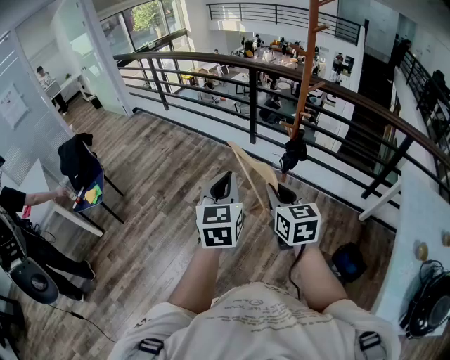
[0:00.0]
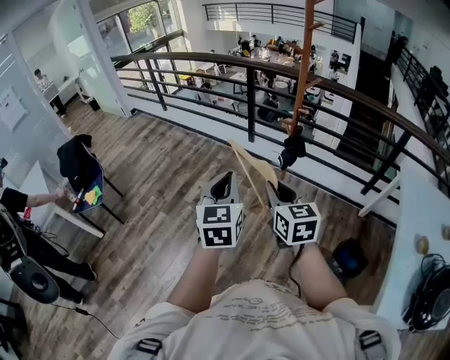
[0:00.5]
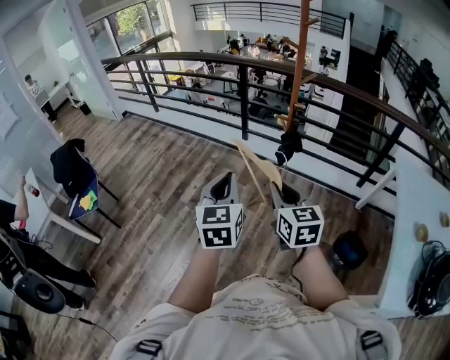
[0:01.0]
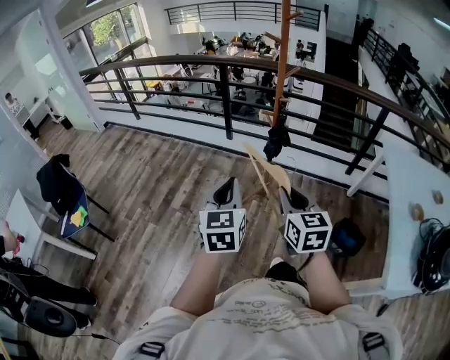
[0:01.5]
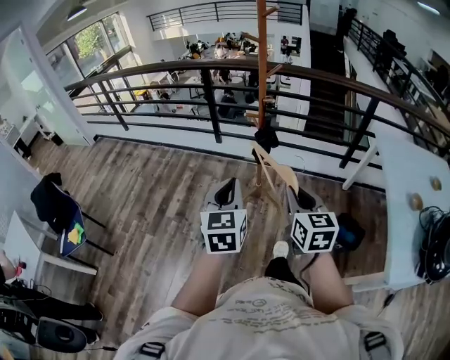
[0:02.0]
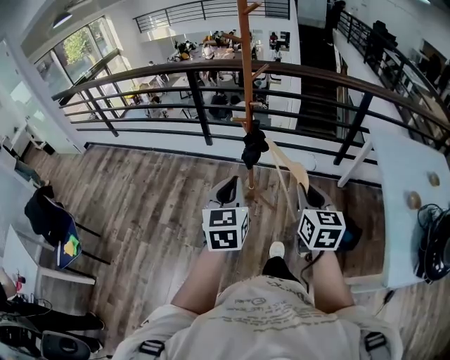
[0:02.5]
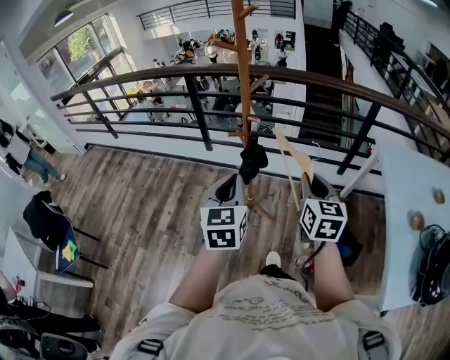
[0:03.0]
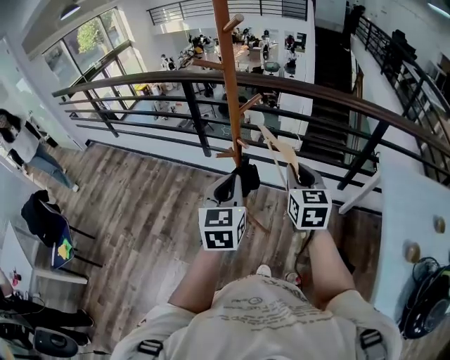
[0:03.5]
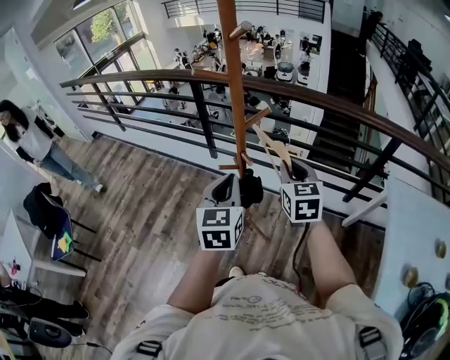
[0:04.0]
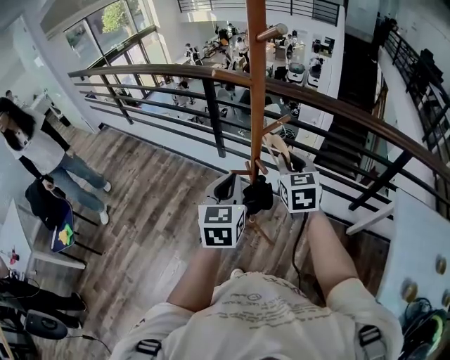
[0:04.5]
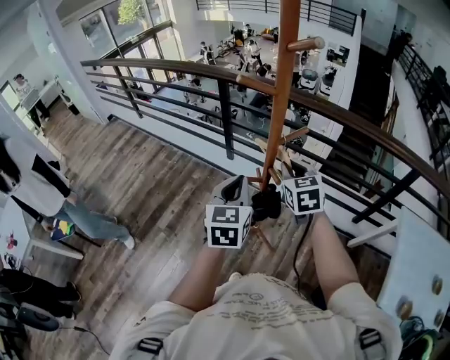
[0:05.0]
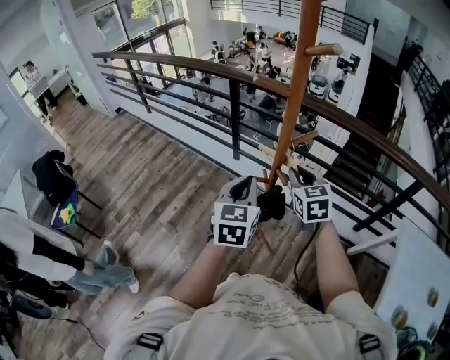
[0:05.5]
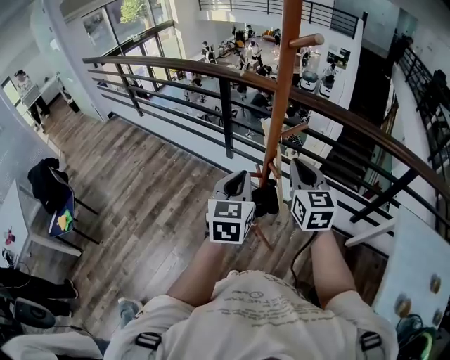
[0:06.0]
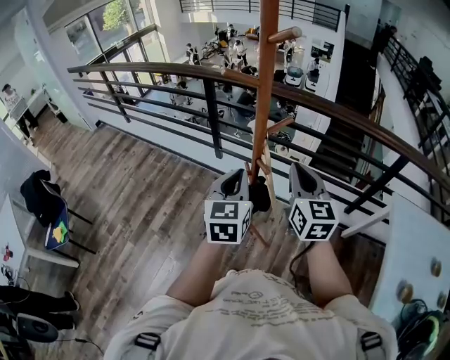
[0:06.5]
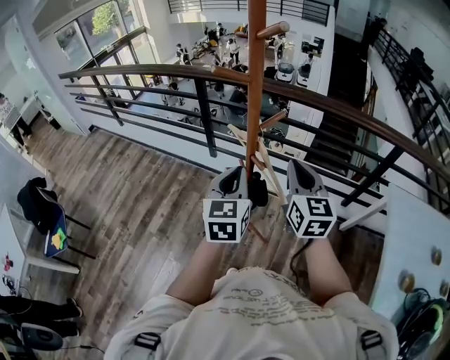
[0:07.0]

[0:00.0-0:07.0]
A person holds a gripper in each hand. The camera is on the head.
0:00.0 to 0:02.0: The left gripper travels to the right by about 5 cm; the right gripper travels to the right by some 10 cm, and turns by approximately 20 degrees.
0:02.0 to 0:03.5: The left gripper shifts about 30 cm forward and to the right. Meanwhile the right gripper is displaced forward by about 35 cm.
0:03.5 to 0:05.0: The right gripper goes roughly 20 cm forward and to the left, and changes its angle by approximately 20 degrees. Meanwhile the left gripper heads forward and to the left, covering approximately 15 cm.
0:05.0 to 0:07.0: The right gripper is displaced backward, upward and to the right by approximately 15 cm, and changes its angle by roughly 30 degrees. The left gripper shifts by approximately 5 cm.

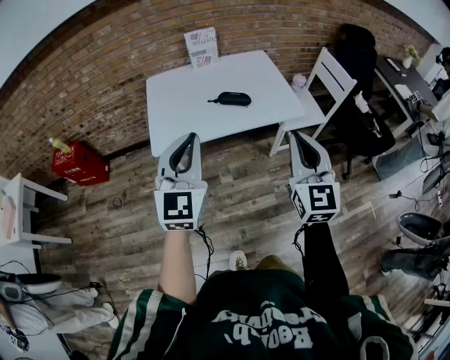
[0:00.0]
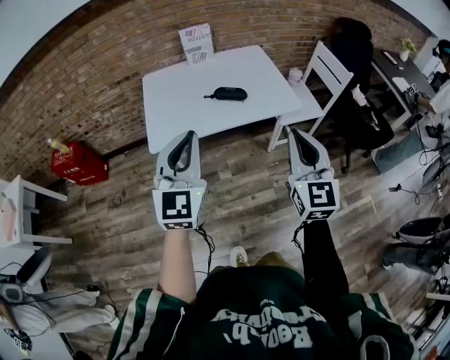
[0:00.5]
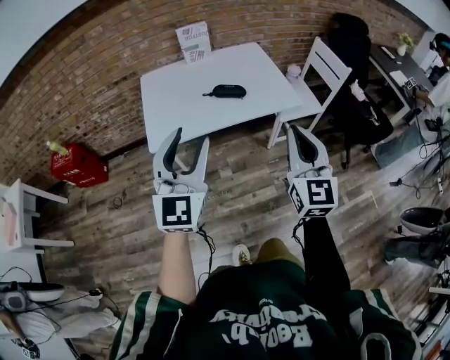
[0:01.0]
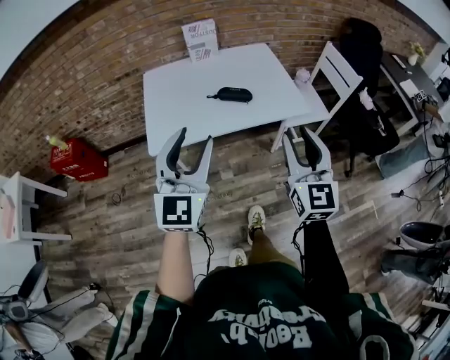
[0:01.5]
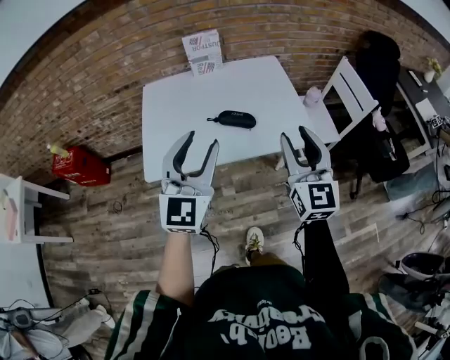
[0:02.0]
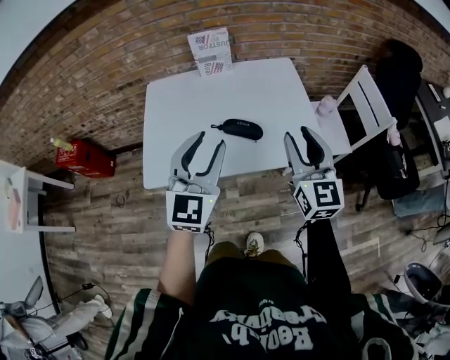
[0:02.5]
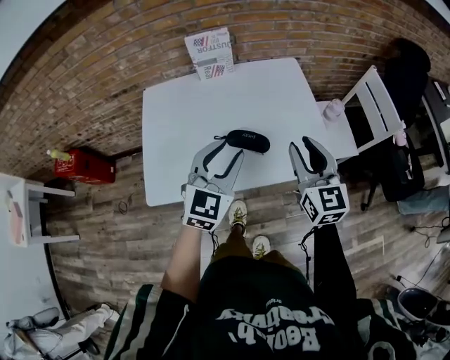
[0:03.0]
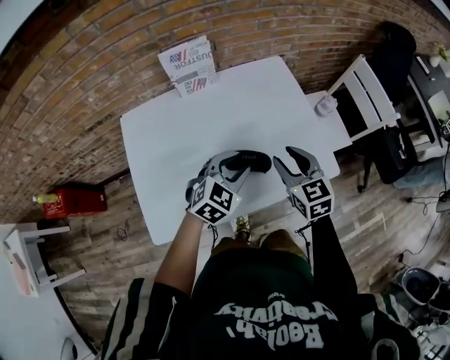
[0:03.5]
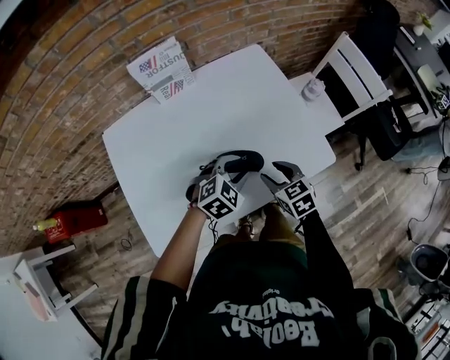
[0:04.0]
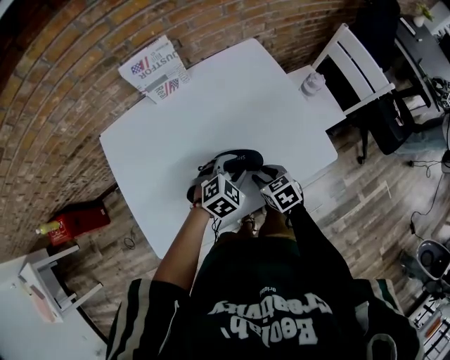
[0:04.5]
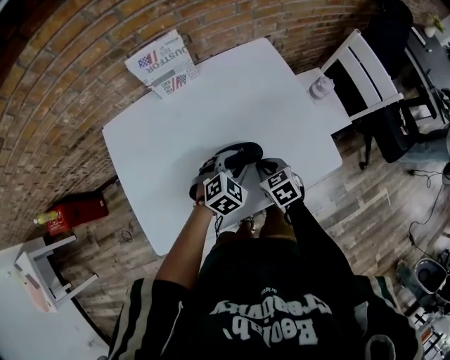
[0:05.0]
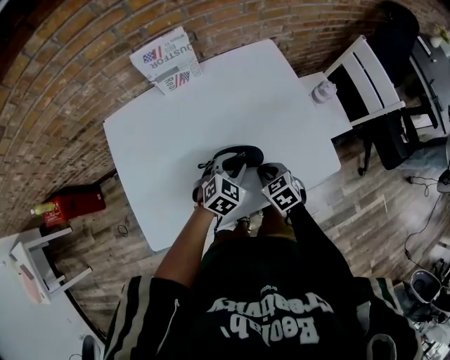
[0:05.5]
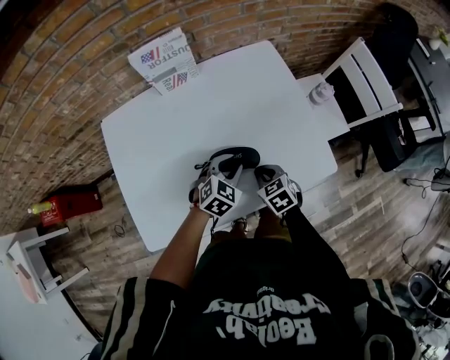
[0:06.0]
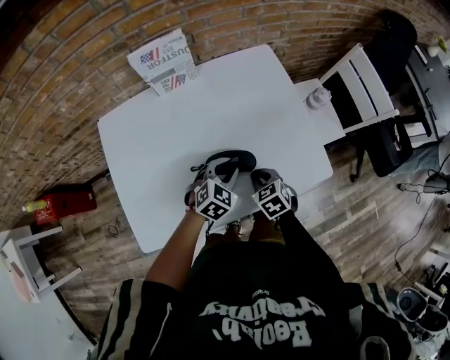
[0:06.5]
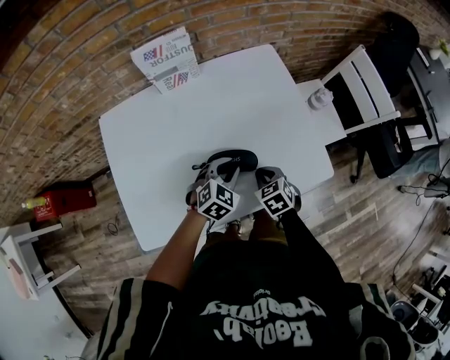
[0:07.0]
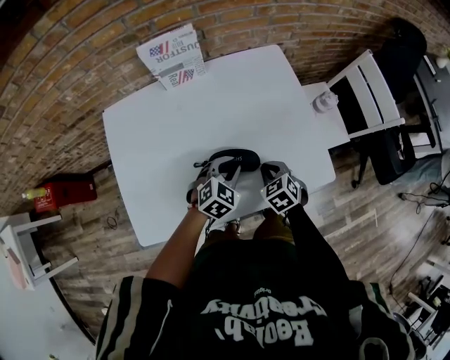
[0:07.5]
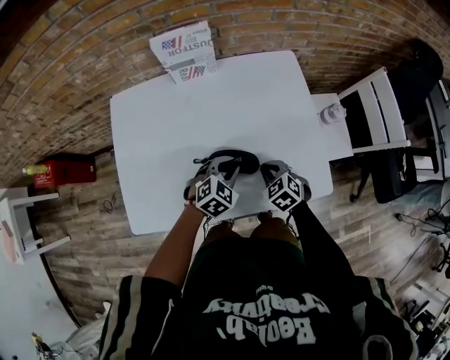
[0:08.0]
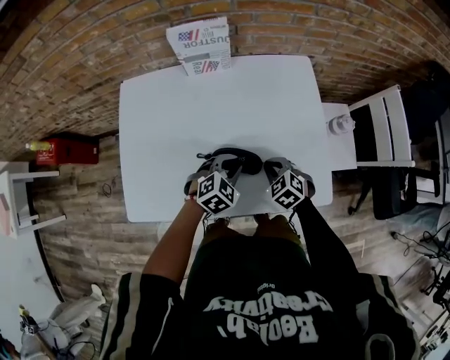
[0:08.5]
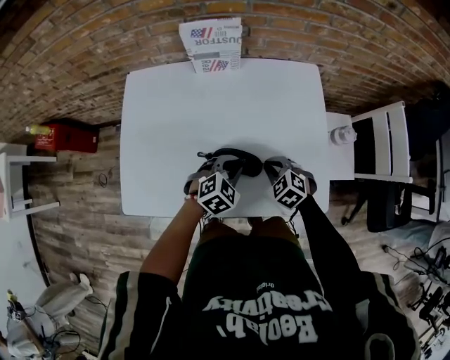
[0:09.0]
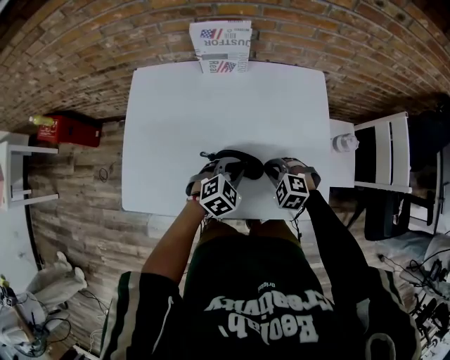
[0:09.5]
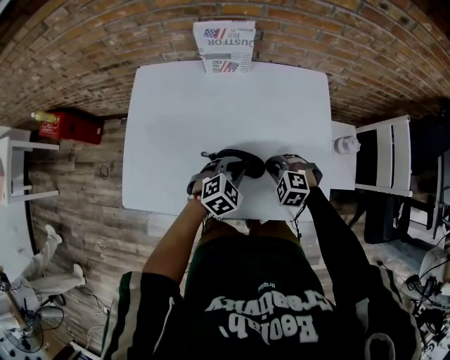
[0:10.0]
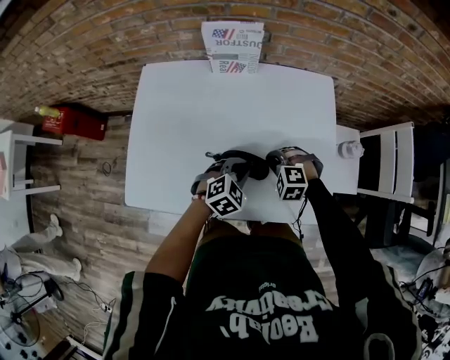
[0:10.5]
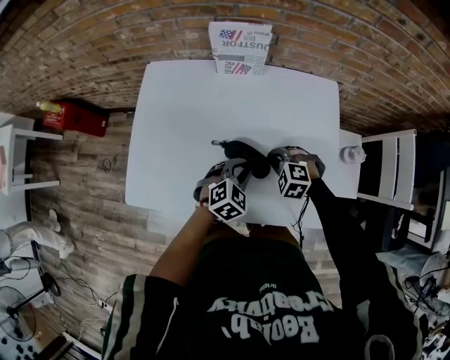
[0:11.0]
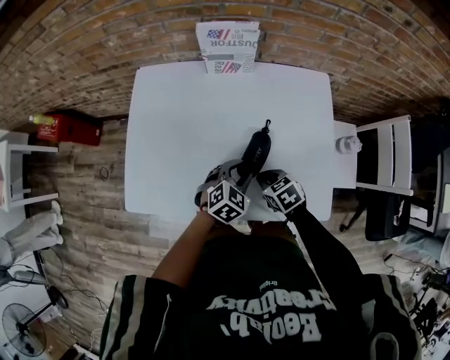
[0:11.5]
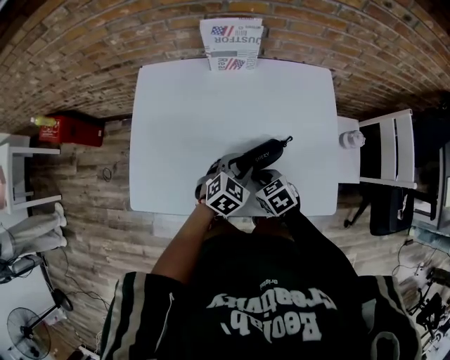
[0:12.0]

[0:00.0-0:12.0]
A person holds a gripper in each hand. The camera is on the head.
0:00.0 to 0:02.0: Both grippers travel together forward, approximately 20 cm. The left gripper opens. Meanwhile the right gripper opens its fingers.
0:02.0 to 0:04.0: The grippers both shift downward and forward by some 40 cm. The left gripper angles its fingers downward, by about 50 degrees; the right gripper tips its fingers downward by roughly 50 degrees.
0:04.0 to 0:06.0: The right gripper travels downward by some 5 cm, and closes. Meanwhile the left gripper ends up some 5 cm from where it was.
0:06.0 to 0:08.0: The right gripper turns by some 20 degrees.
0:08.0 to 0:10.0: The right gripper rolls counterclockwise, seen from behind, by approximately 40 degrees.
0:10.0 to 0:12.0: The right gripper moves to the left, approximately 10 cm, and rotates around the line of its fingers by roughly 50 degrees, clockwise from behind.

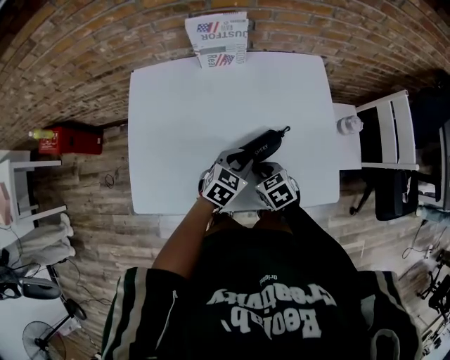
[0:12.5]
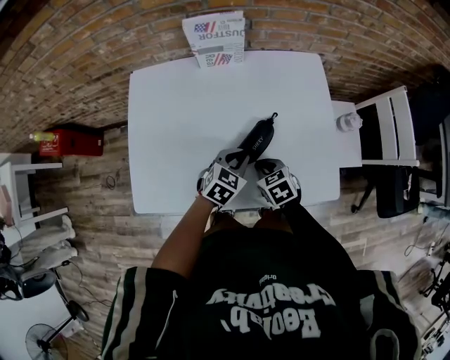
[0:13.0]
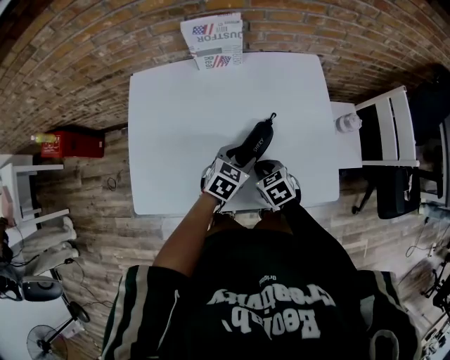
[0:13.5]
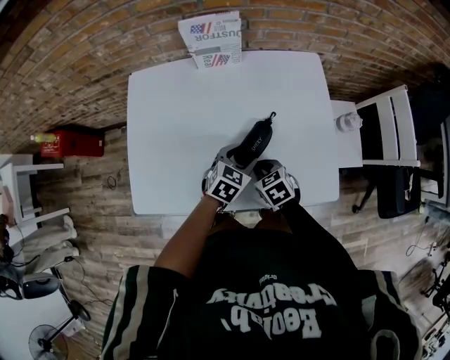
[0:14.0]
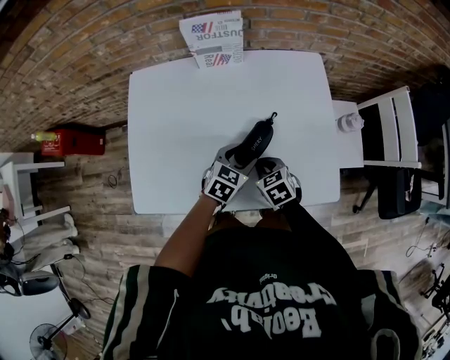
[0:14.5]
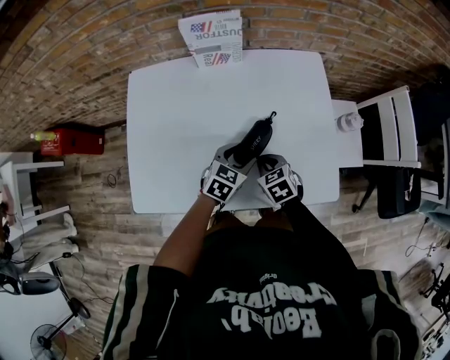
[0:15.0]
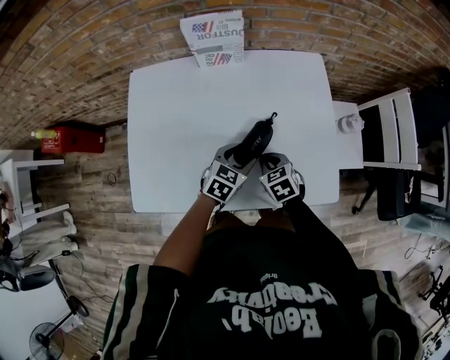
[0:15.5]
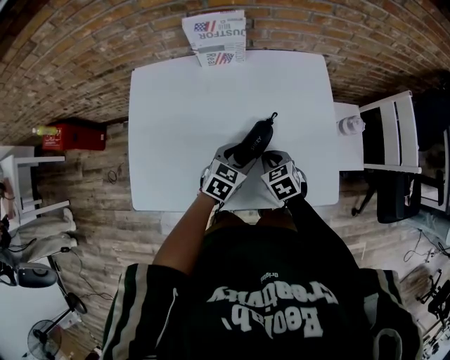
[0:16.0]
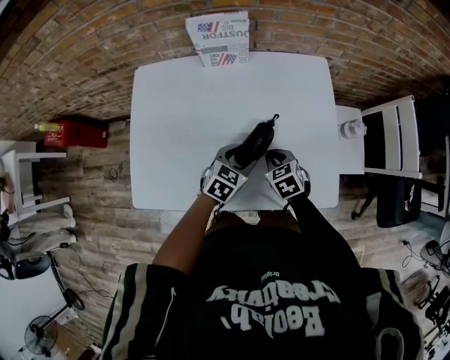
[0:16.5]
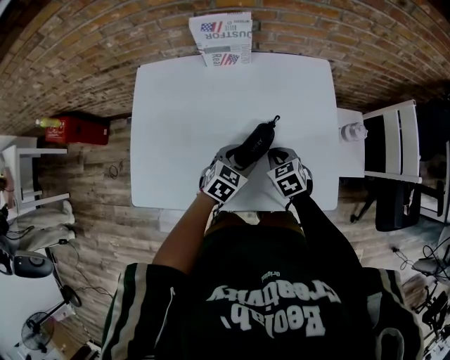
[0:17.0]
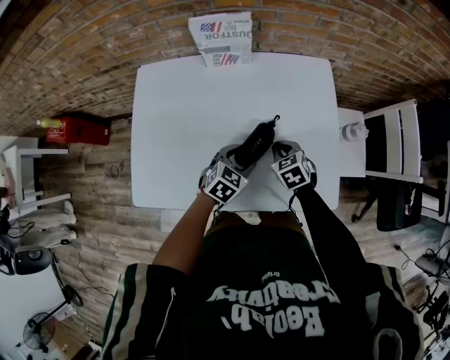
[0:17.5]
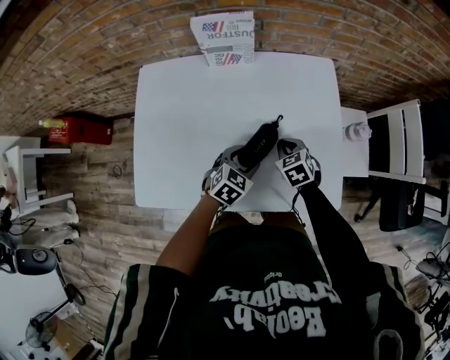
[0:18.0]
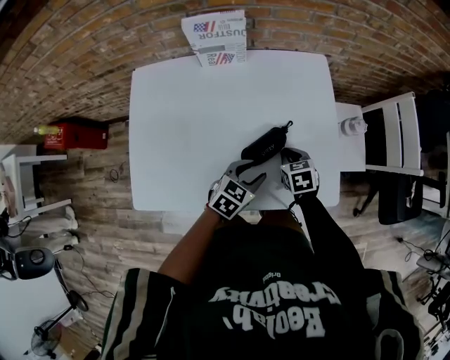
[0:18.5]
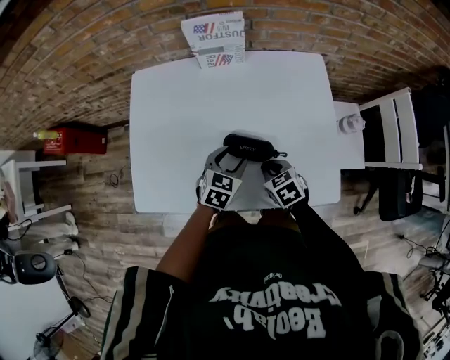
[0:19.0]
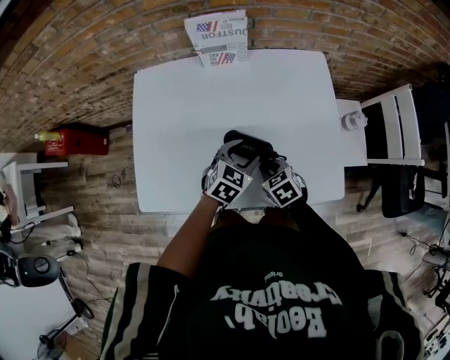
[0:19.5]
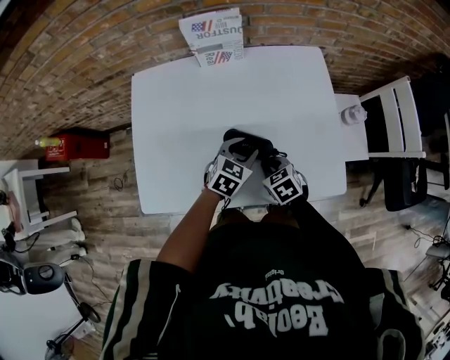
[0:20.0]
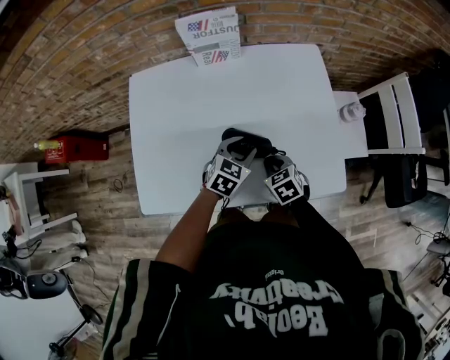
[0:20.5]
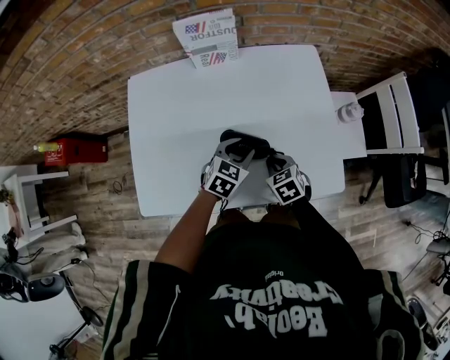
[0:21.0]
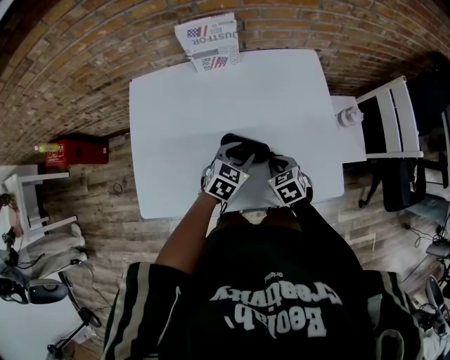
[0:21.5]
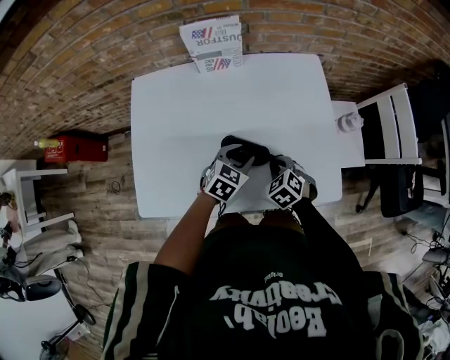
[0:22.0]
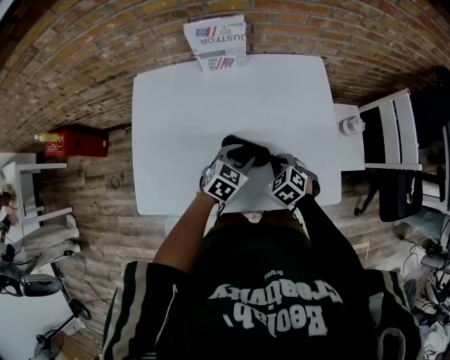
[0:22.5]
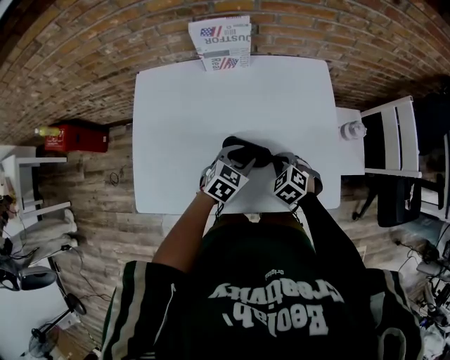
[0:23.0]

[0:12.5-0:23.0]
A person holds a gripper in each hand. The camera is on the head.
0:12.5 to 0:14.5: The left gripper opens its fingers.
0:14.5 to 0:16.5: The right gripper changes place by approximately 5 cm.
0:16.5 to 0:19.0: The right gripper ends up about 5 cm from where it was.
0:19.0 to 0:21.0: The grippers stay close to where they were, moving slightly.
0:21.0 to 0:23.0: The right gripper changes its angle by some 30 degrees.
